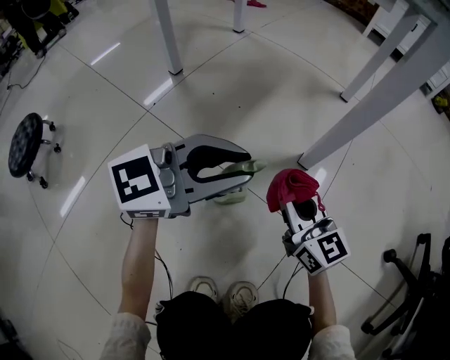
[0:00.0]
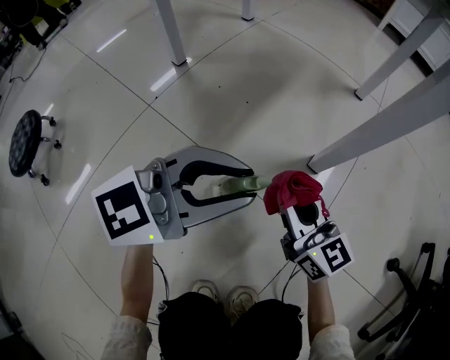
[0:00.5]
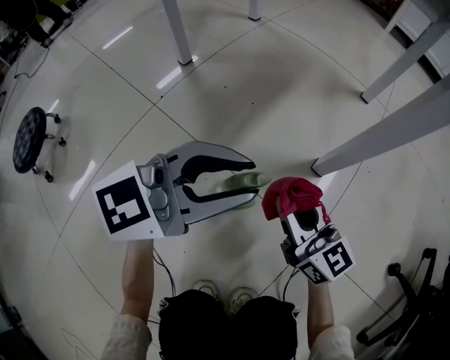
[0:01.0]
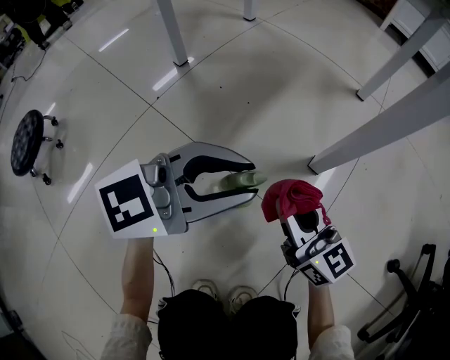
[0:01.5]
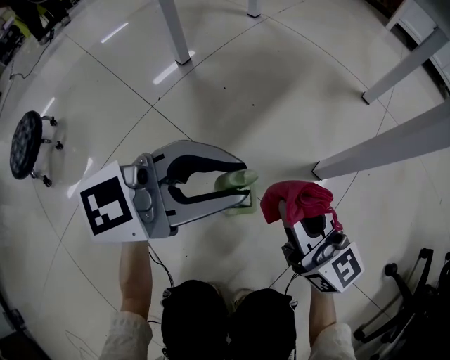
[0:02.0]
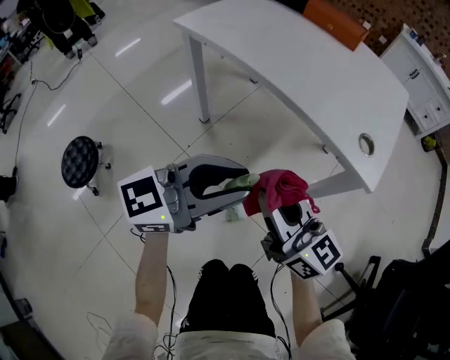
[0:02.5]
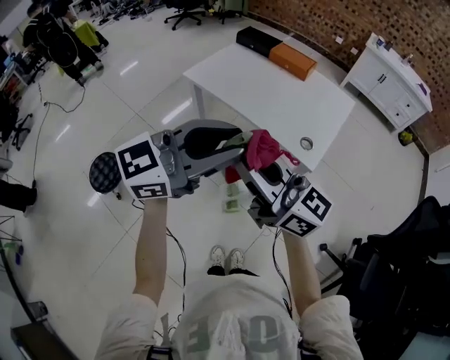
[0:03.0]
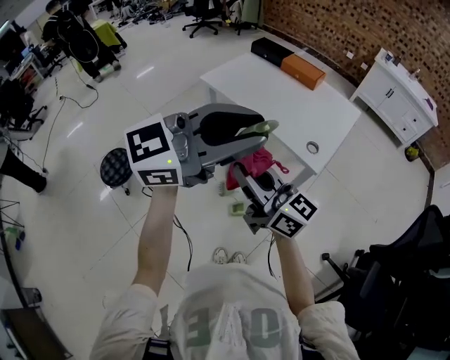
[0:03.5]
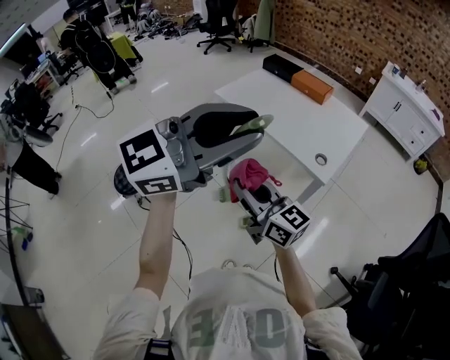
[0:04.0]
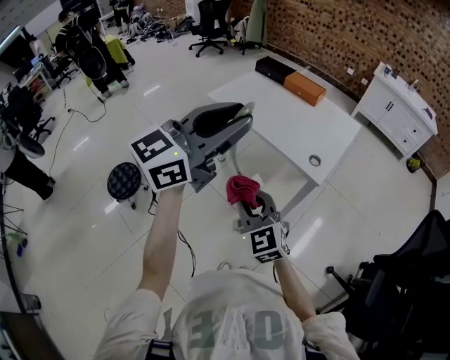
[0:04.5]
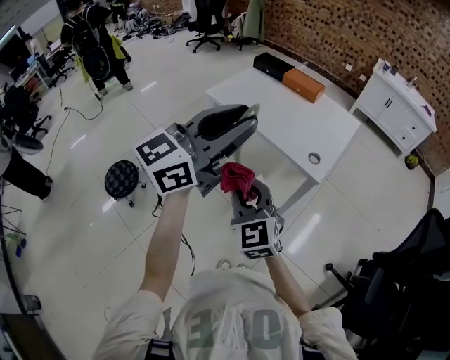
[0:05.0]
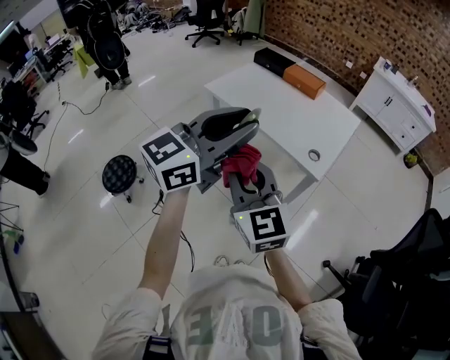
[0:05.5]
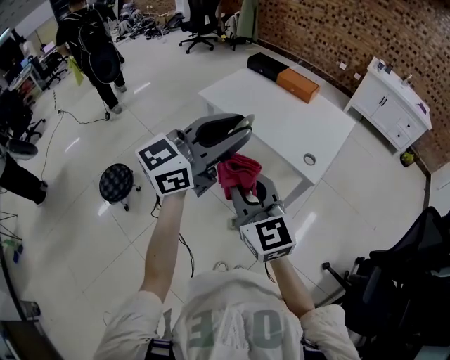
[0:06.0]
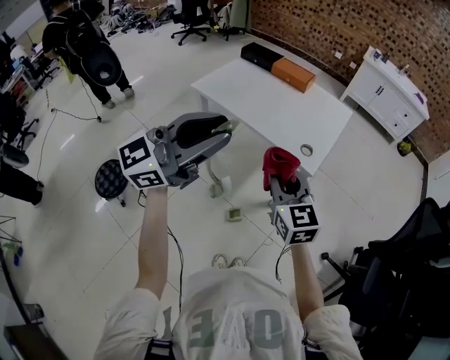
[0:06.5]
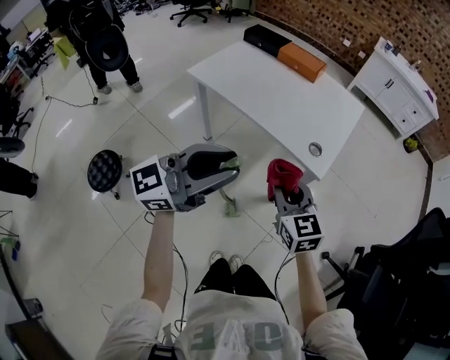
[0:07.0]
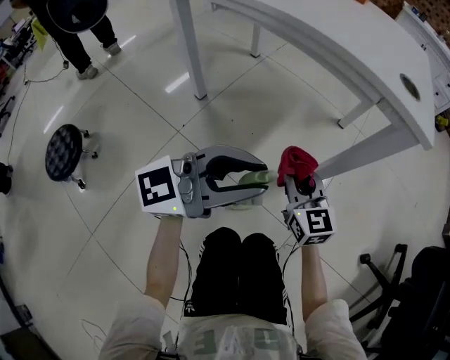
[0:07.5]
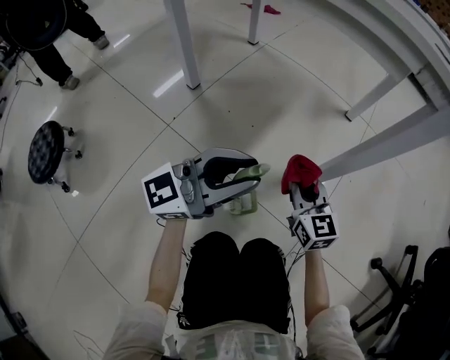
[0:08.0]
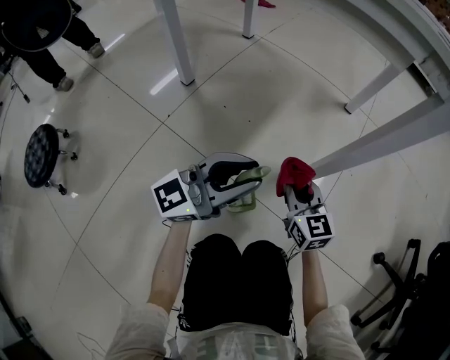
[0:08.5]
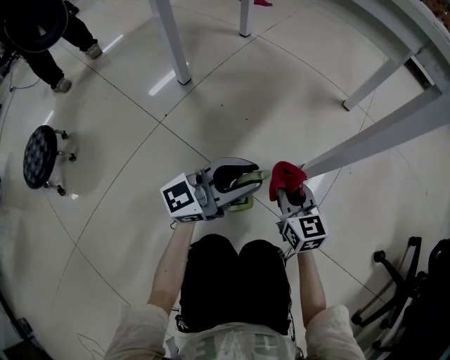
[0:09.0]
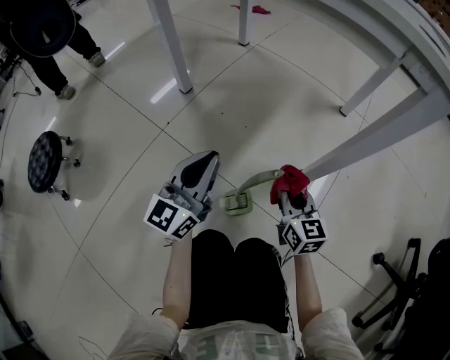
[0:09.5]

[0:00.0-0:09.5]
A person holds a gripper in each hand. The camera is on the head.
0:00.0 to 0:02.0: The right gripper travels upward and to the left by some 10 cm; the left gripper shifts by roughly 5 cm.
0:02.0 to 0:04.0: Both grippers travel together upward, approximately 80 cm.
0:04.0 to 0:05.5: The left gripper moves forward and downward, about 10 cm; the right gripper goes approximately 5 cm upward, and turns by approximately 40 degrees.
0:05.5 to 0:07.5: Both grippers move downward, about 60 cm. The left gripper swivels some 30 degrees.
0:07.5 to 0:09.5: The left gripper shifts about 25 cm downward and to the left, and rotates approximately 50 degrees. Meanwhile the right gripper moves downward, roughly 20 cm.

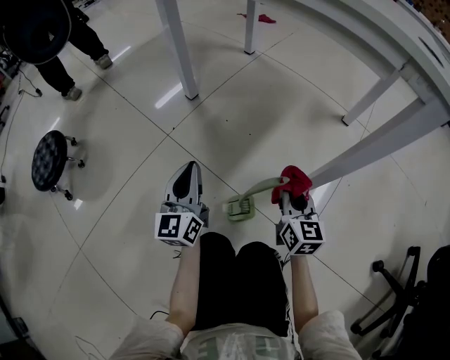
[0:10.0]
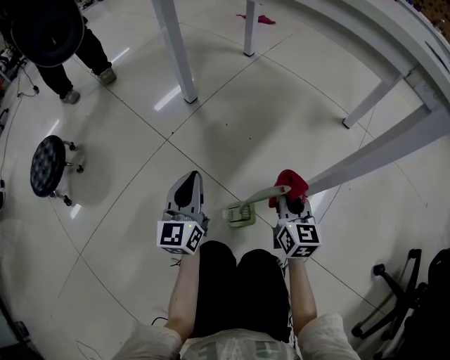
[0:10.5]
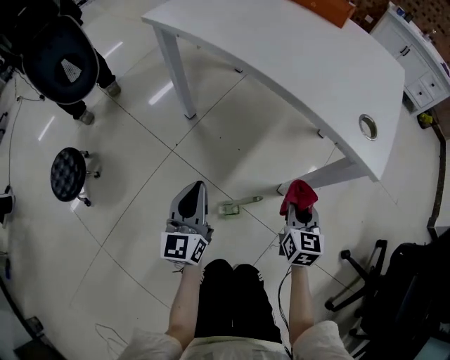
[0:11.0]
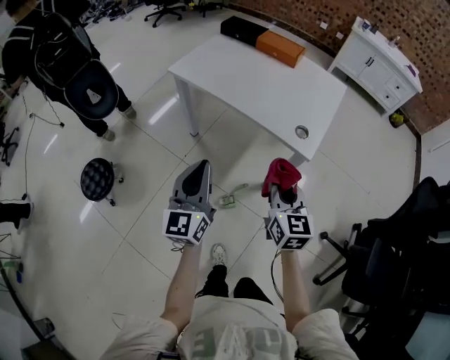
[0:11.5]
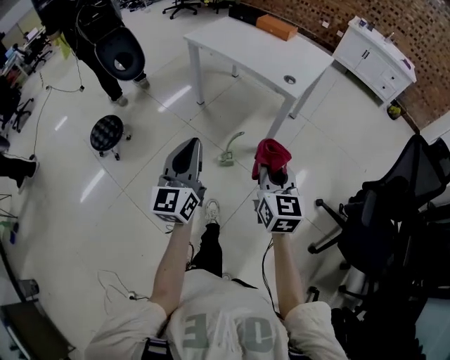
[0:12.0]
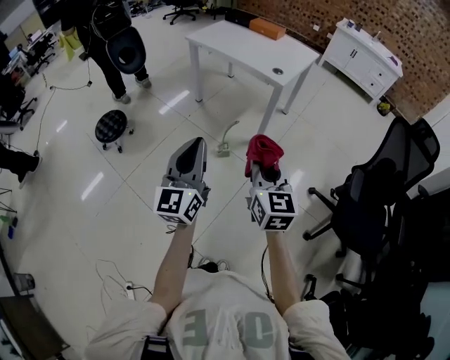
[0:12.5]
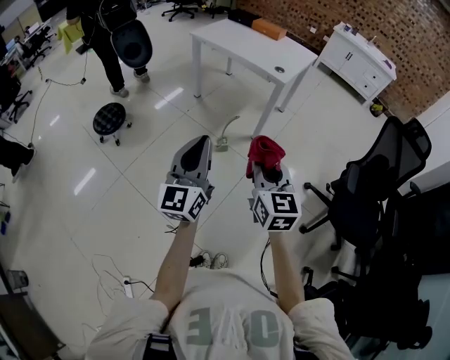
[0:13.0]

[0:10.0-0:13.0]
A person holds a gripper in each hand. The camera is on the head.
0:10.0 to 0:11.5: The two grippers go about 60 cm upward.
0:11.5 to 0:13.0: The pair of grippers is taken backward, some 50 cm.

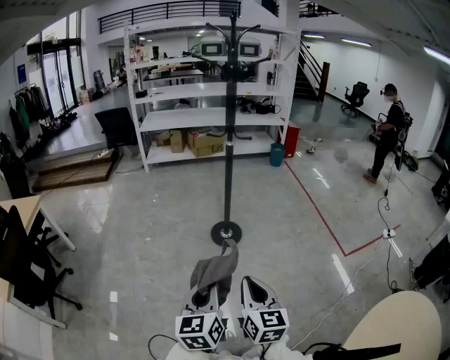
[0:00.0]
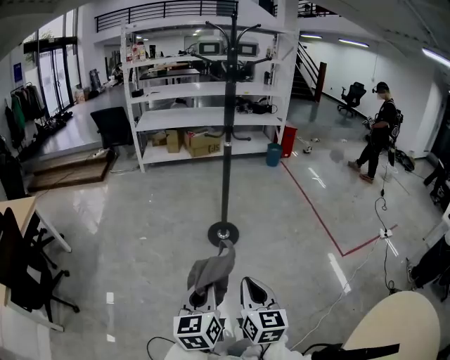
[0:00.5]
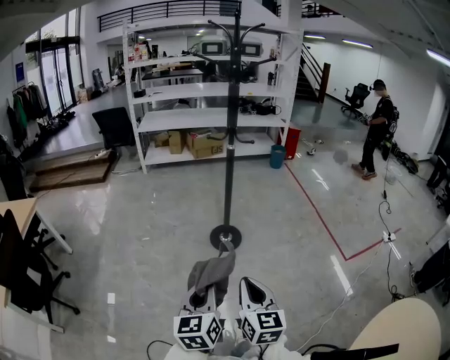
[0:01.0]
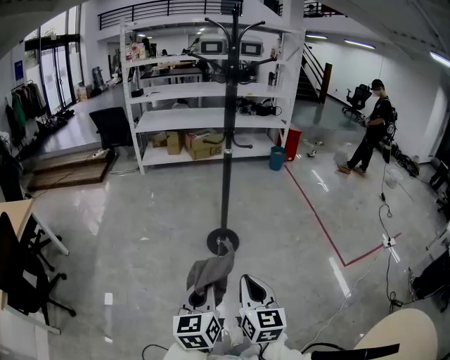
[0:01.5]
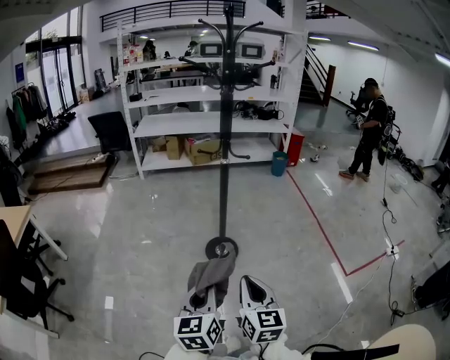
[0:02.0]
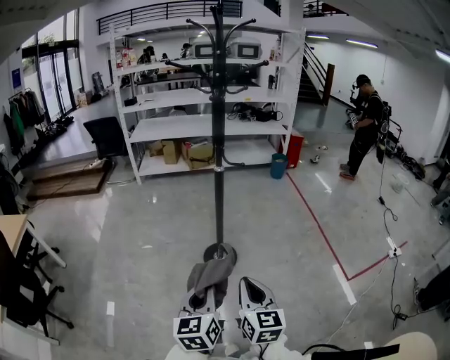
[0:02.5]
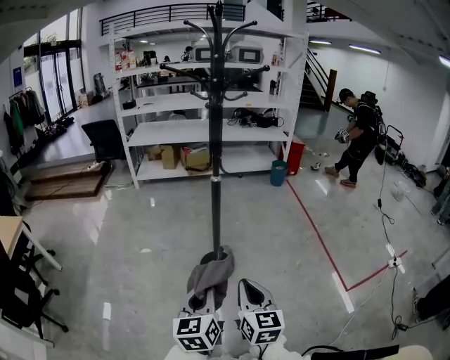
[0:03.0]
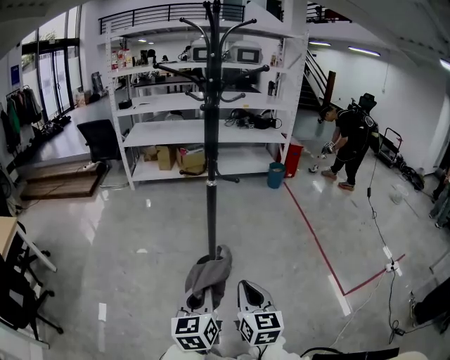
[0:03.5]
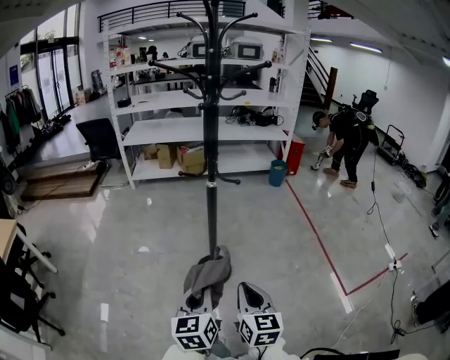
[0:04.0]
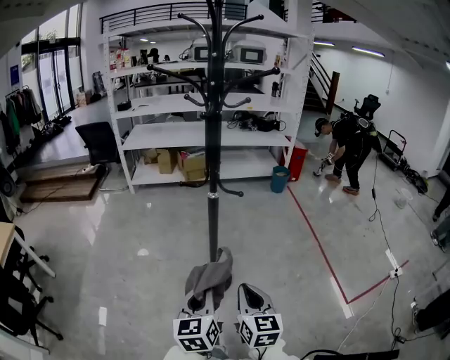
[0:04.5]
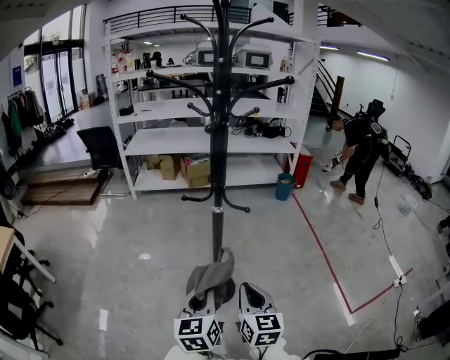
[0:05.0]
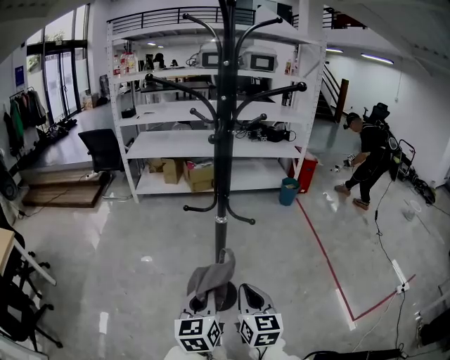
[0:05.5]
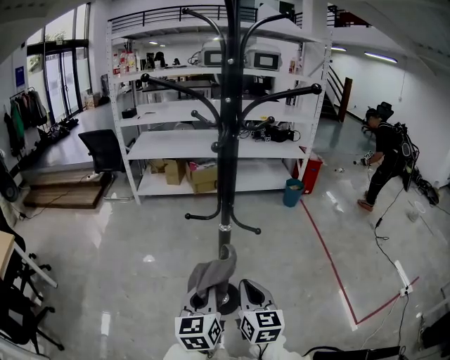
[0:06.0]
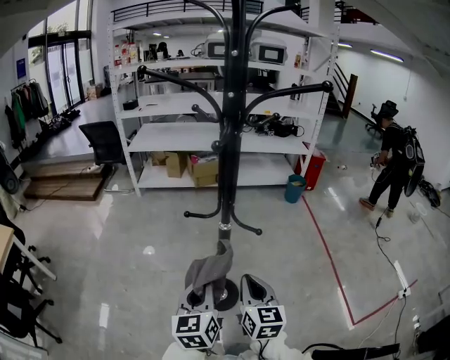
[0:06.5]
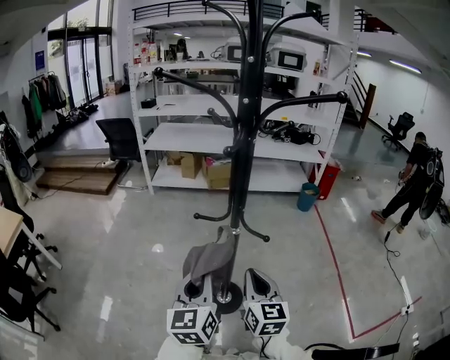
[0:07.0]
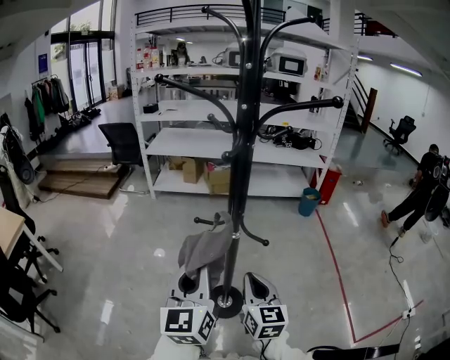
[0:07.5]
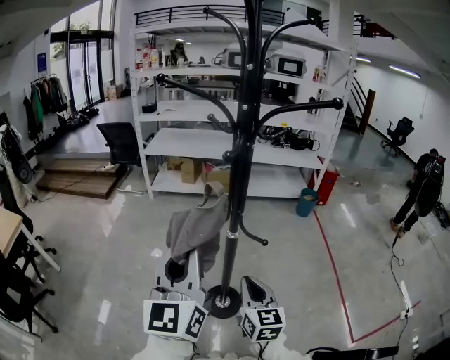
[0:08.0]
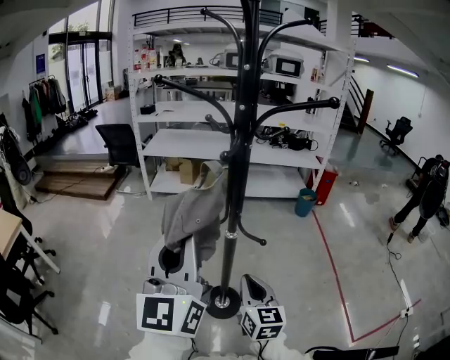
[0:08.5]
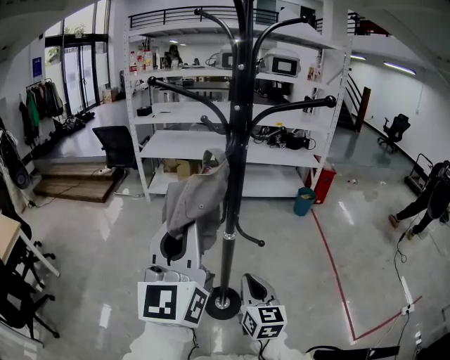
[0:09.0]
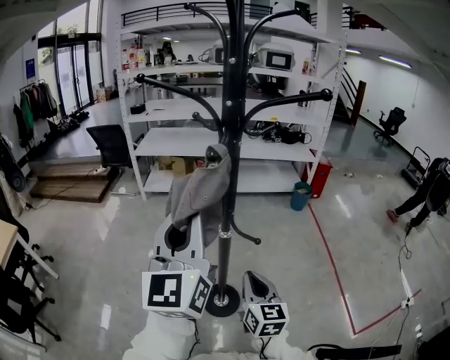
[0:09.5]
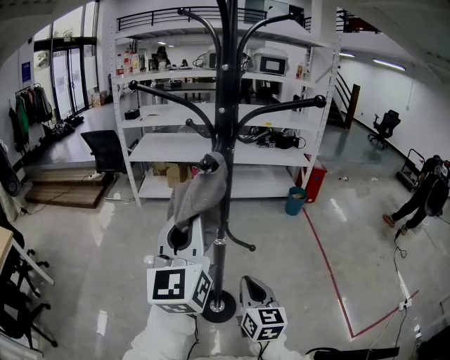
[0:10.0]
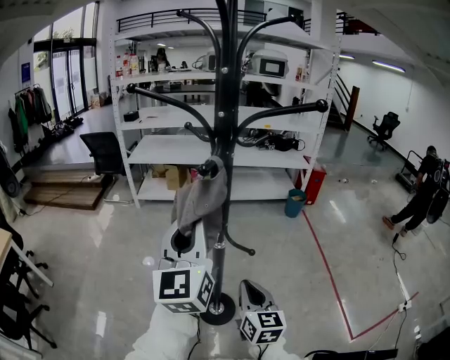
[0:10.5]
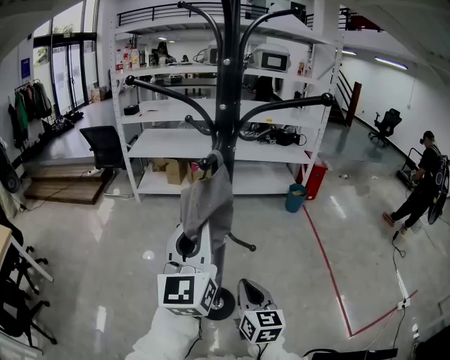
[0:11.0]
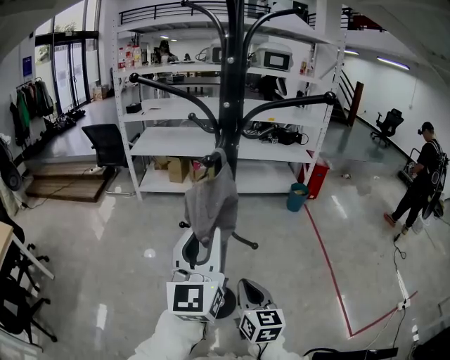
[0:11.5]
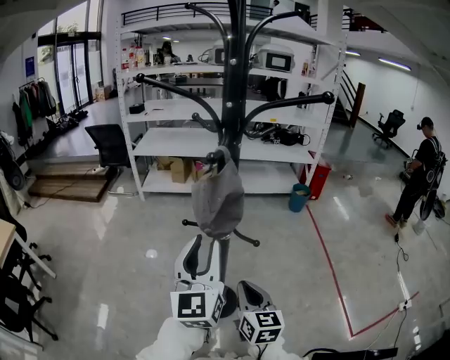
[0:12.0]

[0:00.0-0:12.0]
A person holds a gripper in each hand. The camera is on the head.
0:00.0 to 0:02.0: The two grippers go approximately 15 cm forward.
0:02.0 to 0:04.0: Both grippers move forward, approximately 15 cm.
0:04.0 to 0:06.0: Both grippers move forward, approximately 20 cm.
0:06.0 to 0:08.0: The left gripper moves upward, approximately 20 cm, and changes its angle by approximately 30 degrees.
0:08.0 to 0:10.0: The left gripper moves forward, approximately 5 cm.
0:10.0 to 0:12.0: The left gripper travels downward by about 10 cm, and opens up.

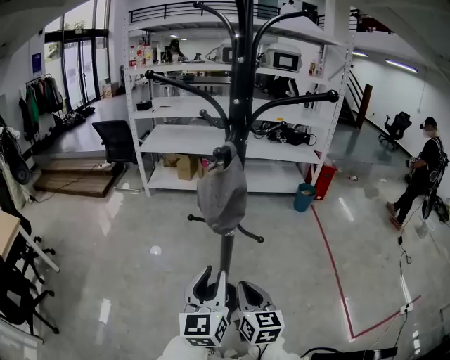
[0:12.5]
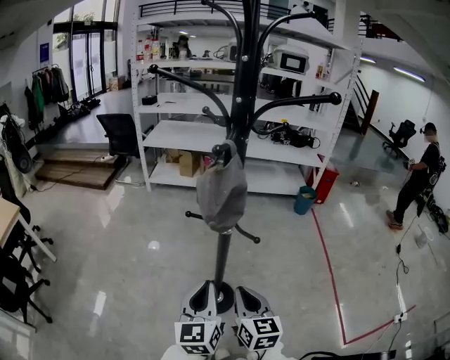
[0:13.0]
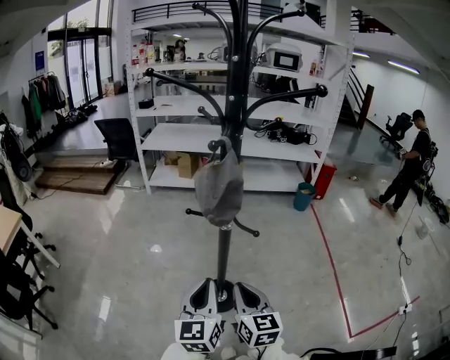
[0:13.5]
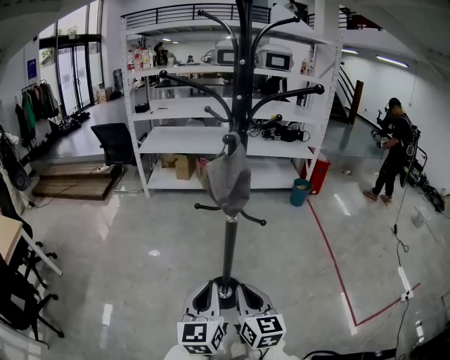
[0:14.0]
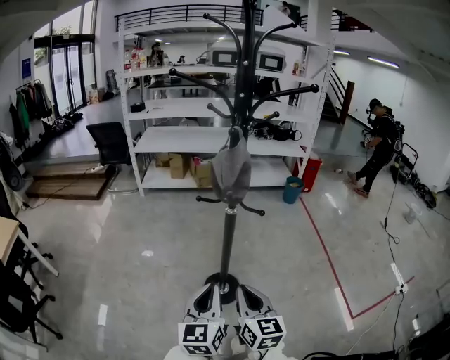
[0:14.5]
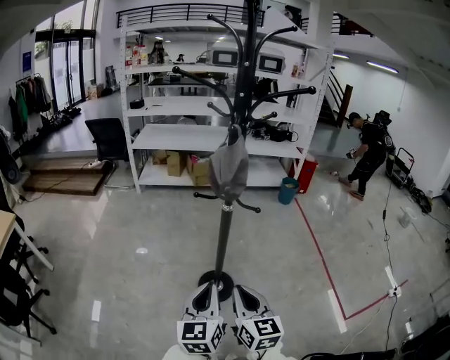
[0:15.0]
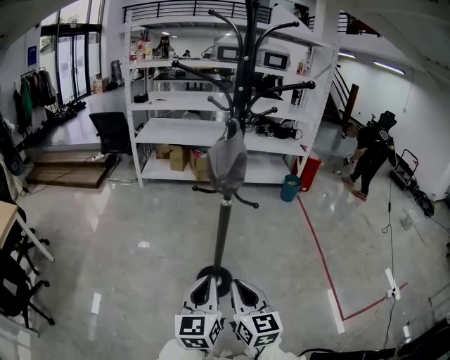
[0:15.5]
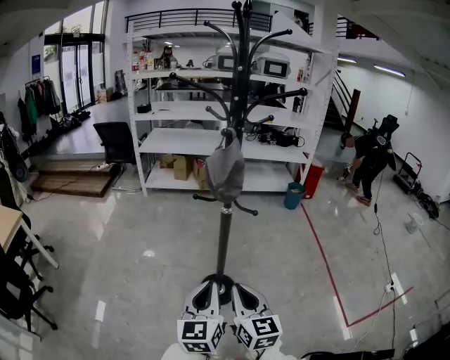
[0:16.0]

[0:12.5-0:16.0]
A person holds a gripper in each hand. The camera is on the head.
0:12.5 to 0:14.5: The right gripper travels backward by roughly 10 cm; the left gripper heads backward and downward, covering some 15 cm, and closes up.
0:14.5 to 0:16.0: There are only small adjustments of the grippers.
